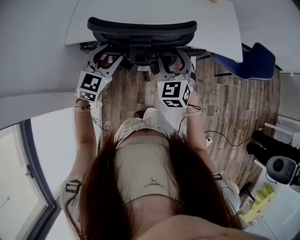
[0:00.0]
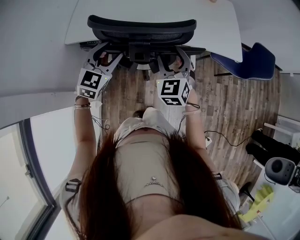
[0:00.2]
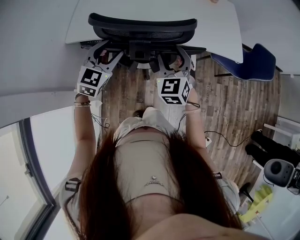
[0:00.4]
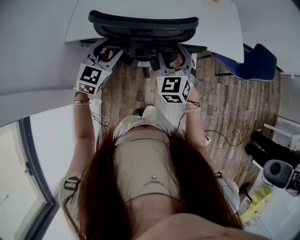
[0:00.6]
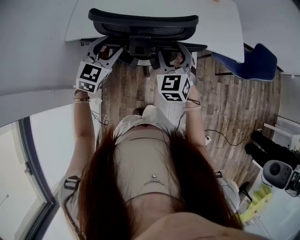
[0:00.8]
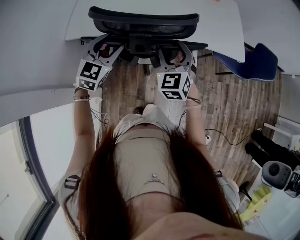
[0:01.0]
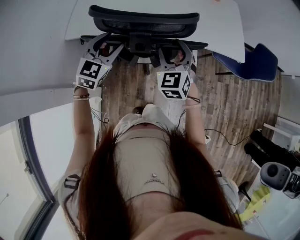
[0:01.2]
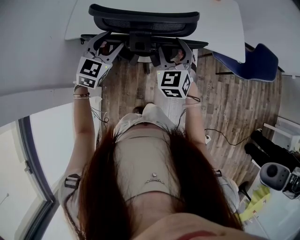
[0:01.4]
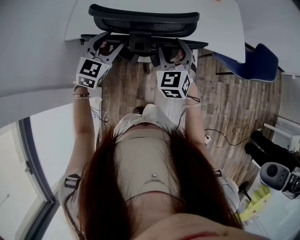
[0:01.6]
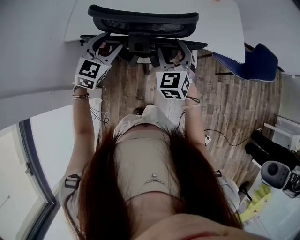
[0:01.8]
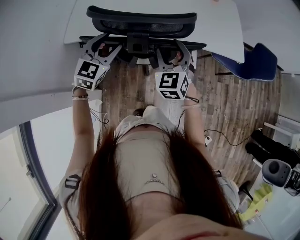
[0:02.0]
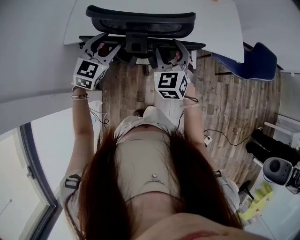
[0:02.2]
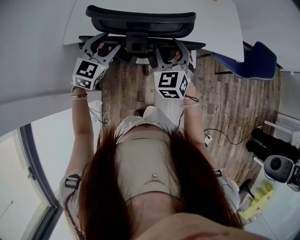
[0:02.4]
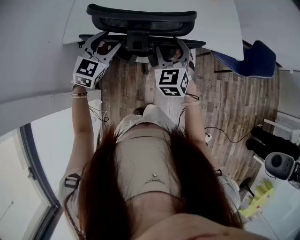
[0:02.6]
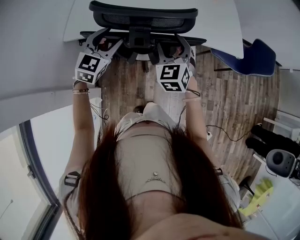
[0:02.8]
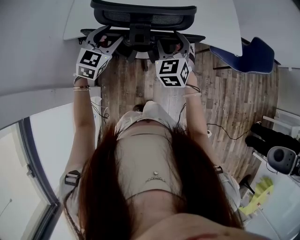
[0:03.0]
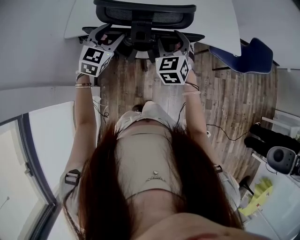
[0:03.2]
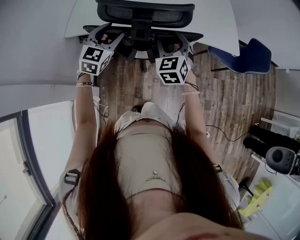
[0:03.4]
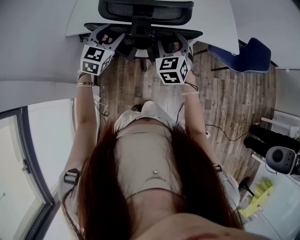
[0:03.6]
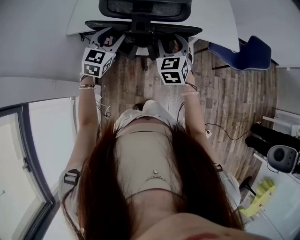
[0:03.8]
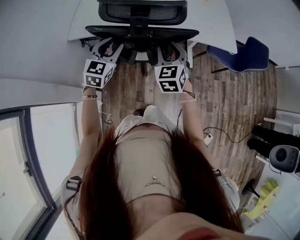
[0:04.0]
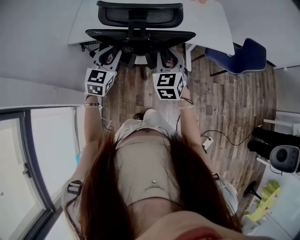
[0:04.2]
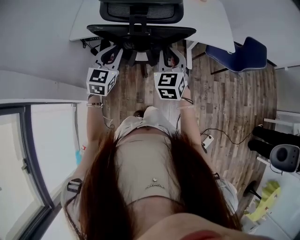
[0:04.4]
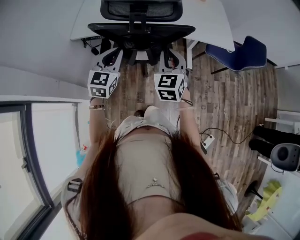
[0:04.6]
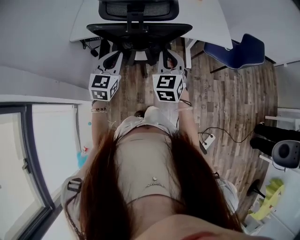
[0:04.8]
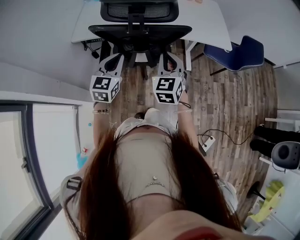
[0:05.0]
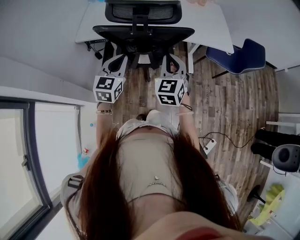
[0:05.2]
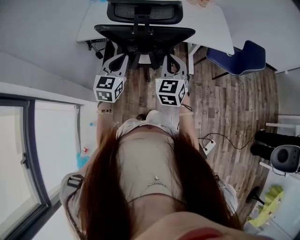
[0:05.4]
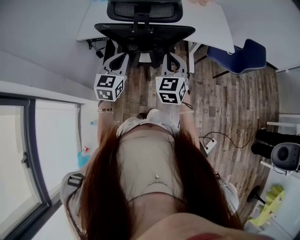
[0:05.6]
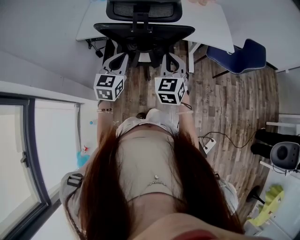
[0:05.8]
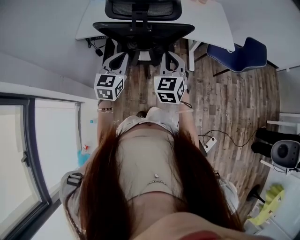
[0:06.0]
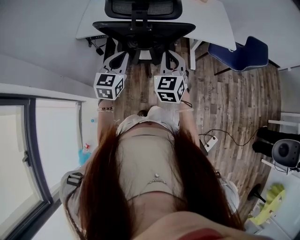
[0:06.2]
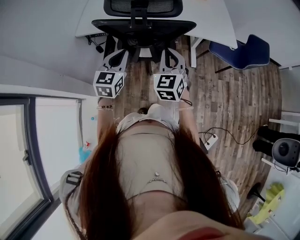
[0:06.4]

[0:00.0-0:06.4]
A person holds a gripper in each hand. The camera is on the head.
0:00.0 to 0:03.2: The grippers move only a little.
0:03.2 to 0:04.8: The two grippers go about 15 cm backward. The left gripper closes up, while the right gripper closes.
0:04.8 to 0:06.4: There are only small adjustments of the grippers.

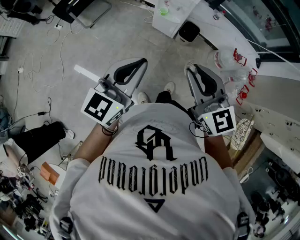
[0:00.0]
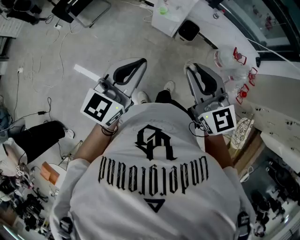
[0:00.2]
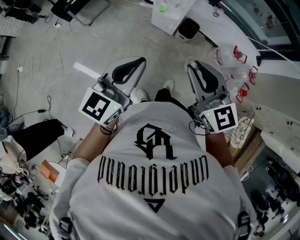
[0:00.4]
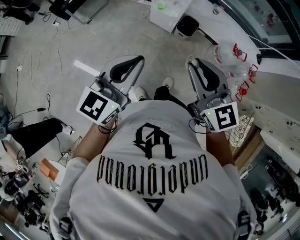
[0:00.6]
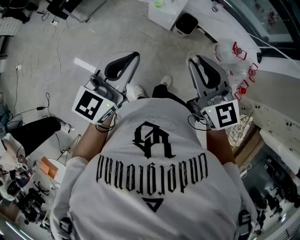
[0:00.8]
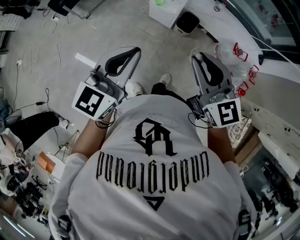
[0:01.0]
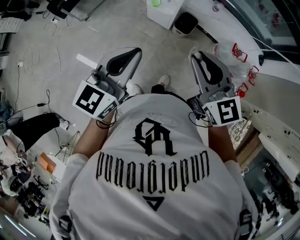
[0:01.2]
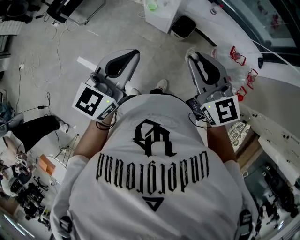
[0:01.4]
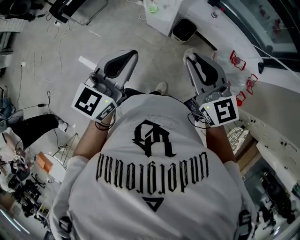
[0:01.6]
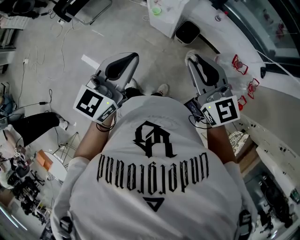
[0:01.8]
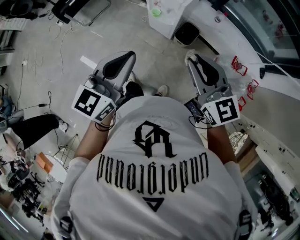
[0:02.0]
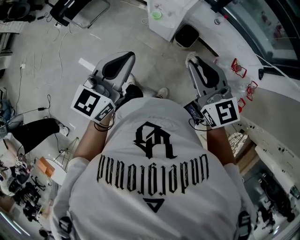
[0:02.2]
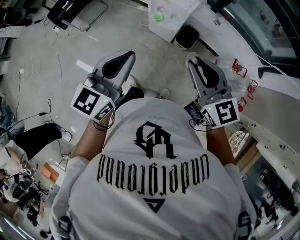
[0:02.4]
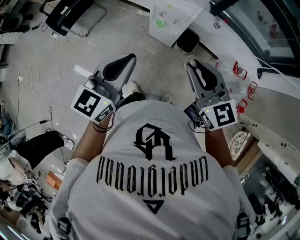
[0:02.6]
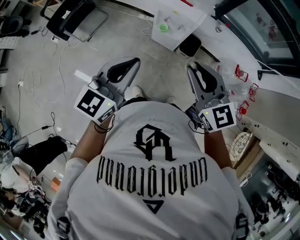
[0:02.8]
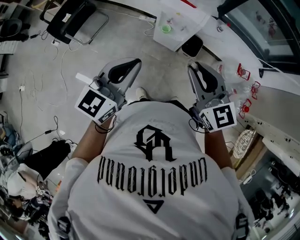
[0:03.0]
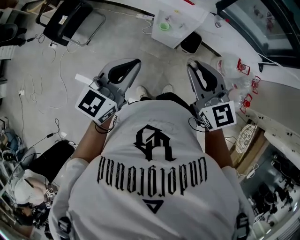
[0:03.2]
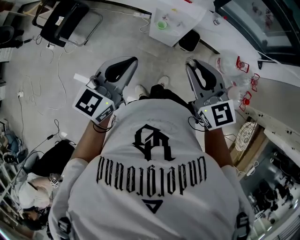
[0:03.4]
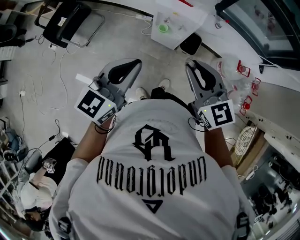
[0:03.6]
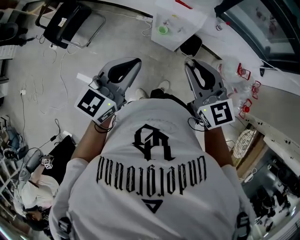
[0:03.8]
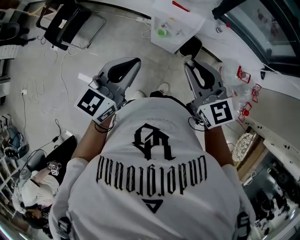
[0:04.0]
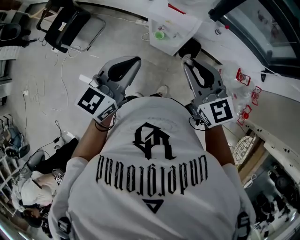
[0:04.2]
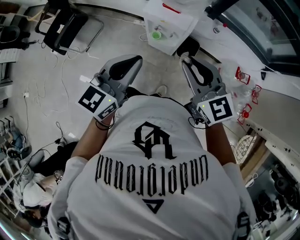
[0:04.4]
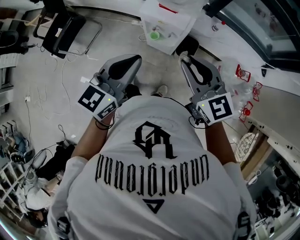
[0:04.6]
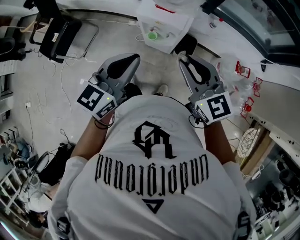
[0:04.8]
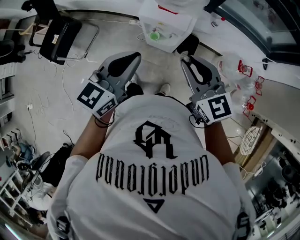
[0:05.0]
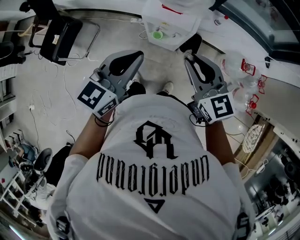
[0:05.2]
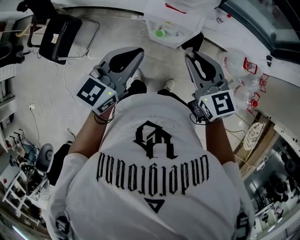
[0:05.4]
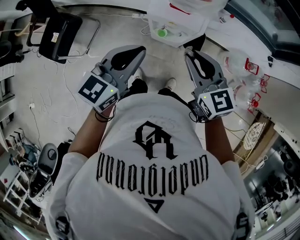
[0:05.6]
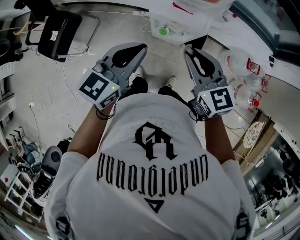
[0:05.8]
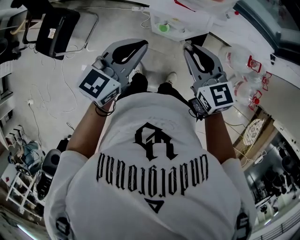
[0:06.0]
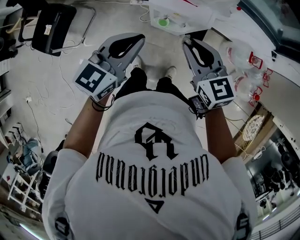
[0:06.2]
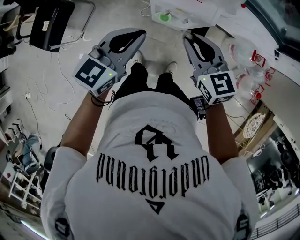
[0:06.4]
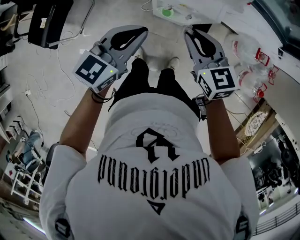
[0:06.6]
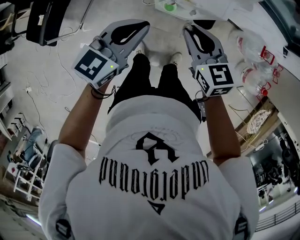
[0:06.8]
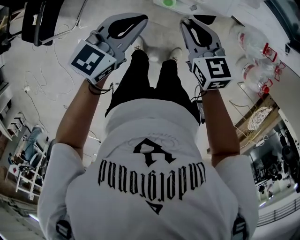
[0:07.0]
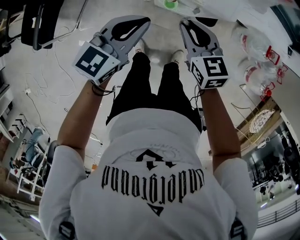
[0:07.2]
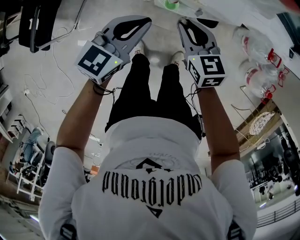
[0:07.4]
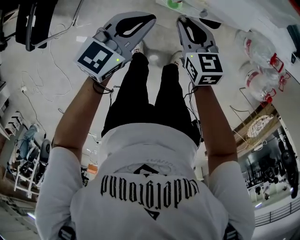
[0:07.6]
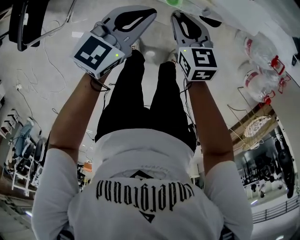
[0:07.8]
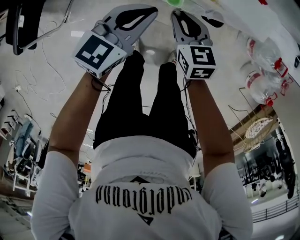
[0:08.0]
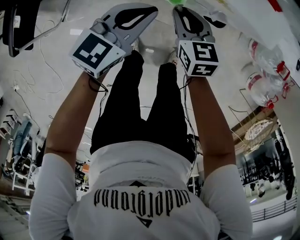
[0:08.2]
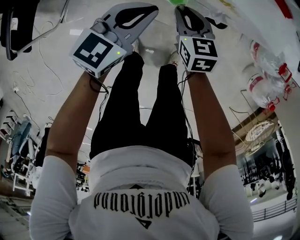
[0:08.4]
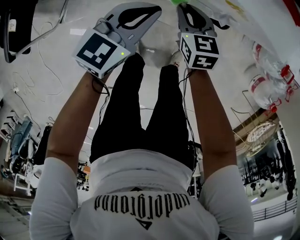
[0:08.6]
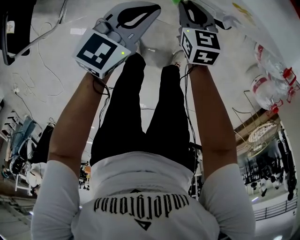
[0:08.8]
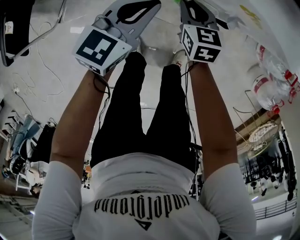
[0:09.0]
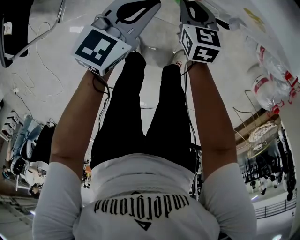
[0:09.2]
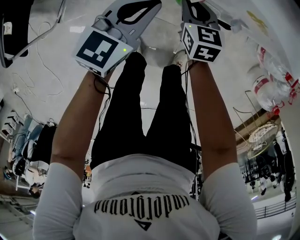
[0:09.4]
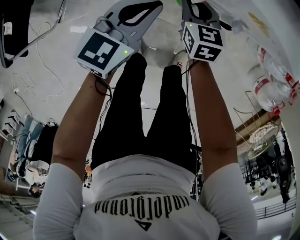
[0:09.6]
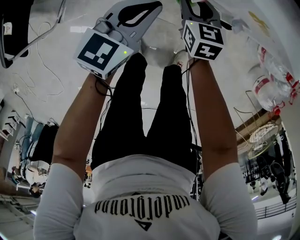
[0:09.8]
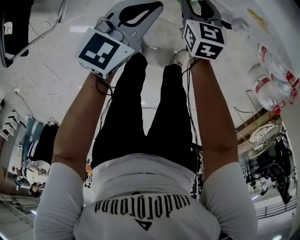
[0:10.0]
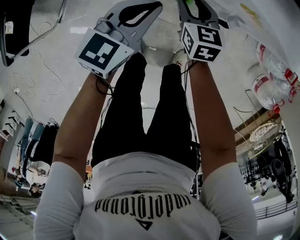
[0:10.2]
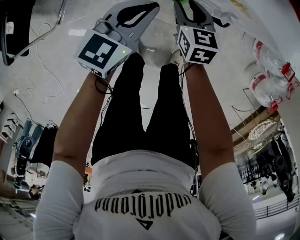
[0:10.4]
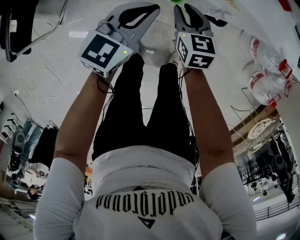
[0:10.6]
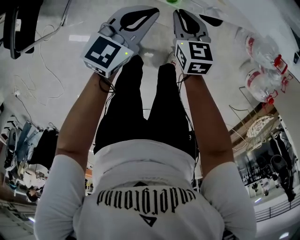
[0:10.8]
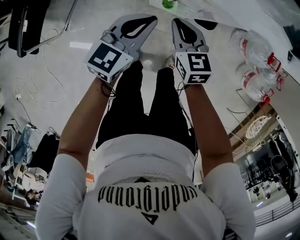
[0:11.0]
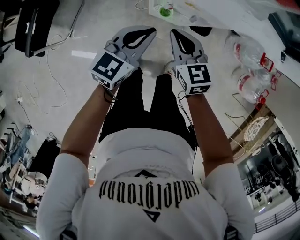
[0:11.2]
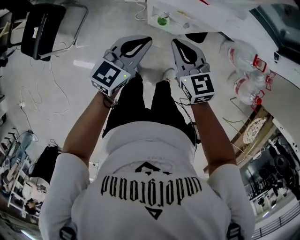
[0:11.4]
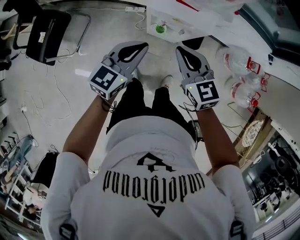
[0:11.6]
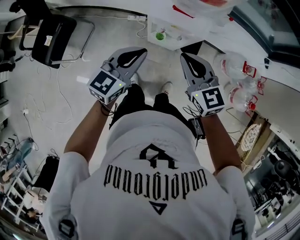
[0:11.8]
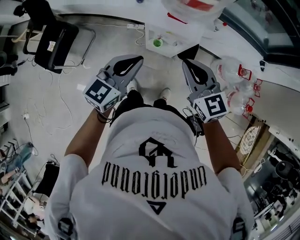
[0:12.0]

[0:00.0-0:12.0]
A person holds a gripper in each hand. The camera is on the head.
0:00.0 to 0:01.6: The two grippers go about 20 cm to the right and forward.
0:01.6 to 0:03.0: The grippers both shift to the left and forward by roughly 25 cm.
0:03.0 to 0:04.4: Both grippers move forward and to the right, about 15 cm.
0:04.4 to 0:06.0: The left gripper moves forward, to the left and downward, some 20 cm; the right gripper moves forward, downward and to the left, approximately 15 cm.
0:06.0 to 0:07.6: Both grippers travel together downward, some 25 cm.
0:07.6 to 0:09.0: Both grippers move downward, roughly 20 cm.
0:09.0 to 0:10.4: There are only small adjustments of the grippers.
0:10.4 to 0:12.0: Both grippers move upward, about 40 cm. The right gripper turns by about 30 degrees, and closes up.

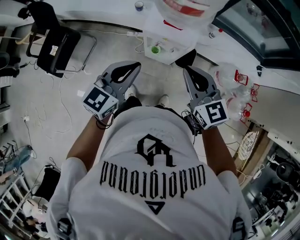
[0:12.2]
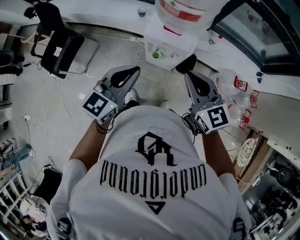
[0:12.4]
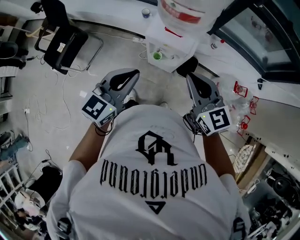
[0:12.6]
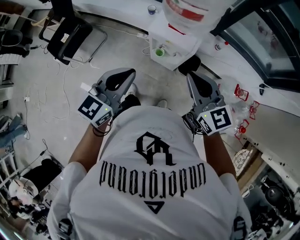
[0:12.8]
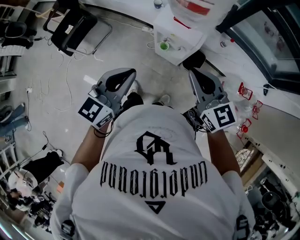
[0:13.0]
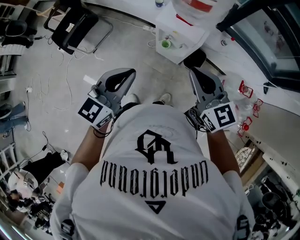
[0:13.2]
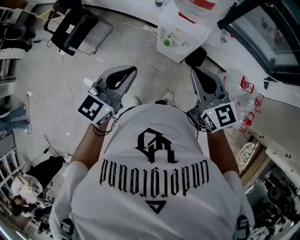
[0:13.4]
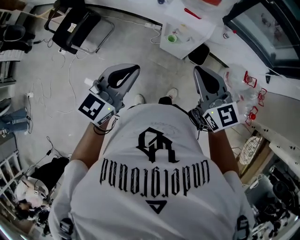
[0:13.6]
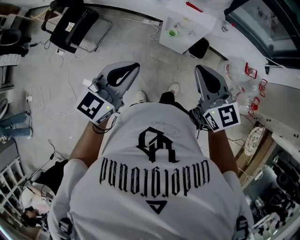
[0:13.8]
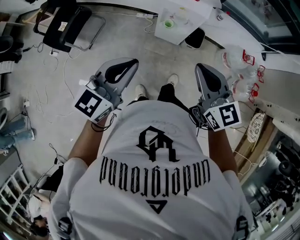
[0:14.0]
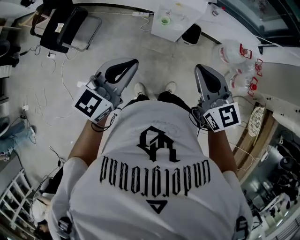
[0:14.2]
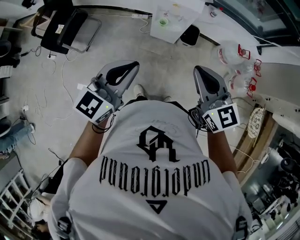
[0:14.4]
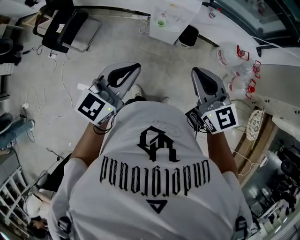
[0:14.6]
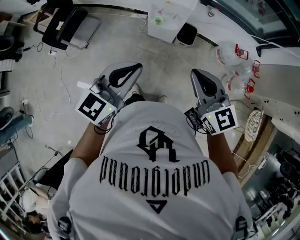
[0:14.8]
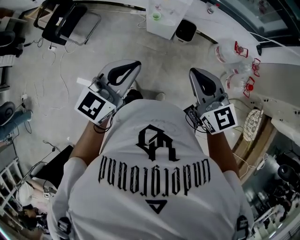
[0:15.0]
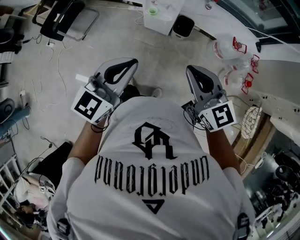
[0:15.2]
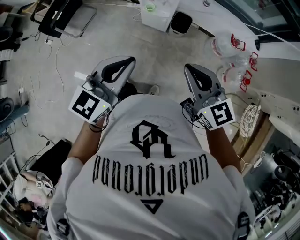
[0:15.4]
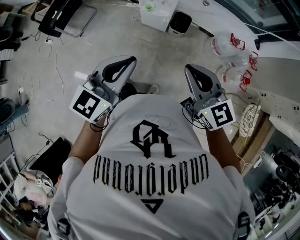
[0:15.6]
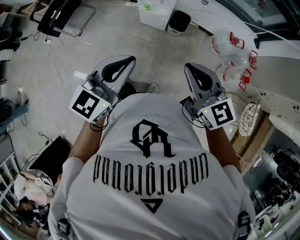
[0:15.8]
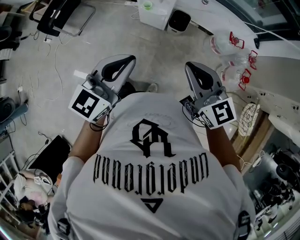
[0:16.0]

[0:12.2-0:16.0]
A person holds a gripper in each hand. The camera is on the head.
0:12.2 to 0:13.4: Both grippers move backward, roughly 10 cm.
0:13.4 to 0:14.8: Both grippers travel together backward, roughly 20 cm.
0:14.8 to 0:16.0: Both grippers travel together to the right and backward, about 10 cm.

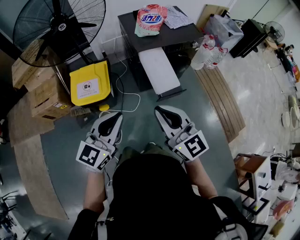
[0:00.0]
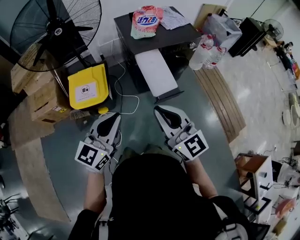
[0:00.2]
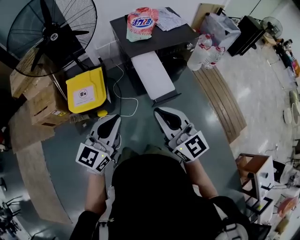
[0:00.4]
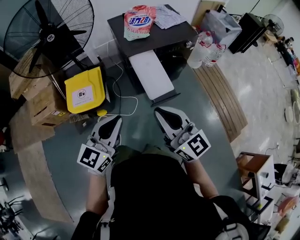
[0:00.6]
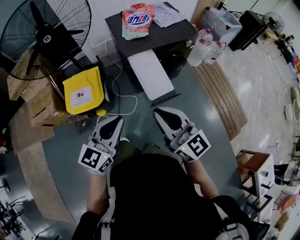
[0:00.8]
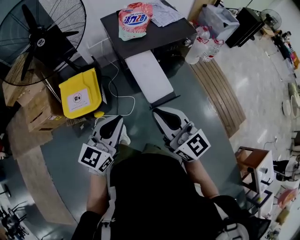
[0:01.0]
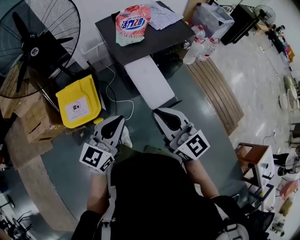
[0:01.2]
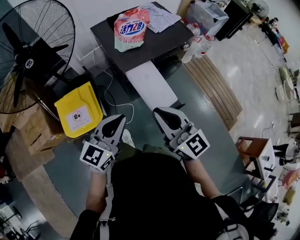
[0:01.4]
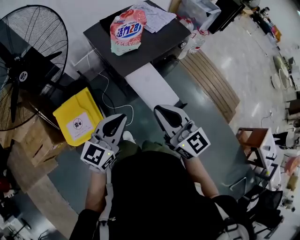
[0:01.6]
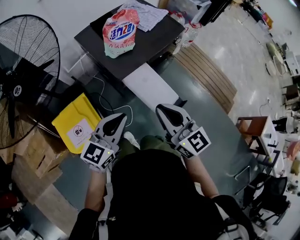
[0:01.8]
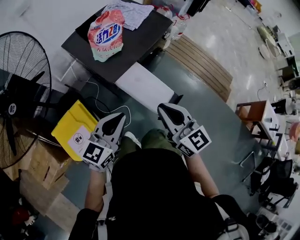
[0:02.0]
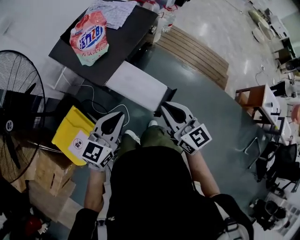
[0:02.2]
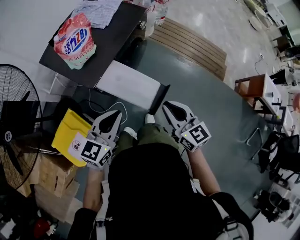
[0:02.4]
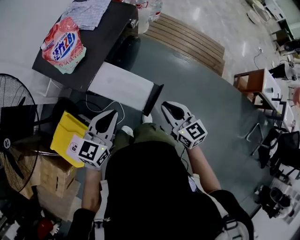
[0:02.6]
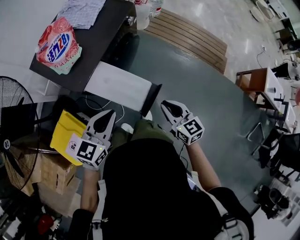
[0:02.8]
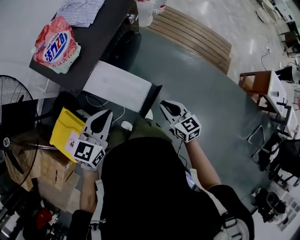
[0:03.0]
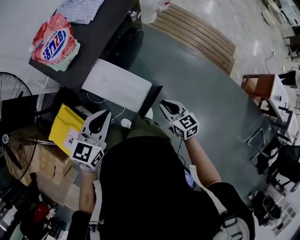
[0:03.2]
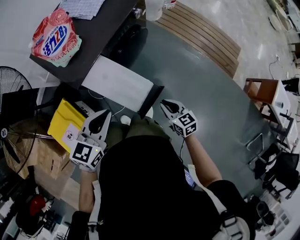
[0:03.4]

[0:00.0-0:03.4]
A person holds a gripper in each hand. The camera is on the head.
0:00.0 to 0:01.6: Both grippers move forward, roughly 25 cm. The left gripper turns by roughly 20 degrees.
0:01.6 to 0:03.4: The right gripper travels downward and to the right by some 40 cm, and points its fingers roughly 30 degrees further downward. Meanwhile the left gripper is displaced to the right, forward and downward by roughly 20 cm, and swivels about 20 degrees.
